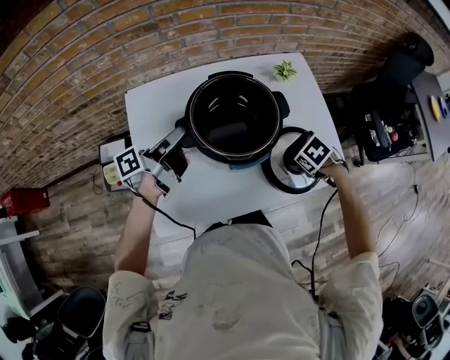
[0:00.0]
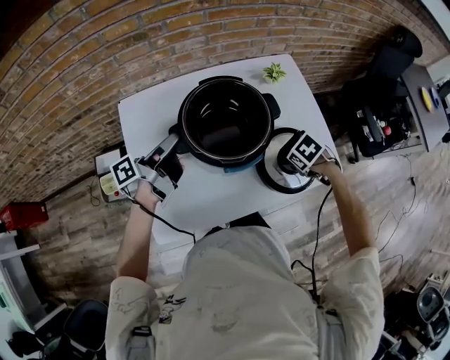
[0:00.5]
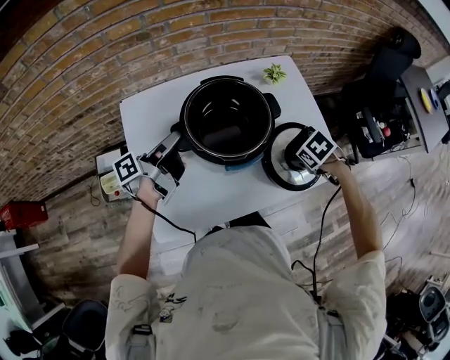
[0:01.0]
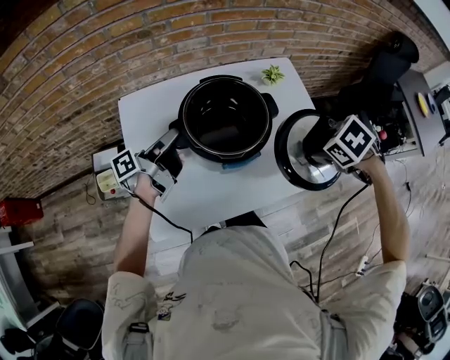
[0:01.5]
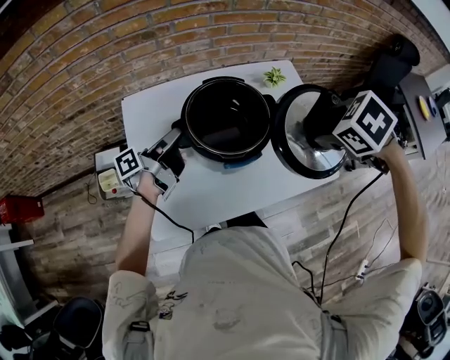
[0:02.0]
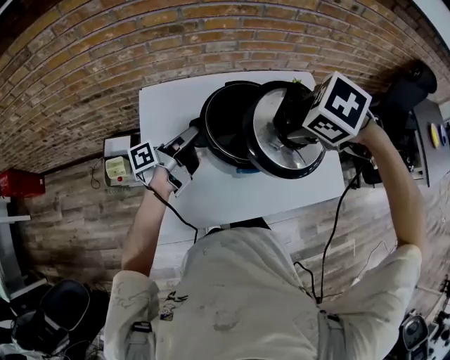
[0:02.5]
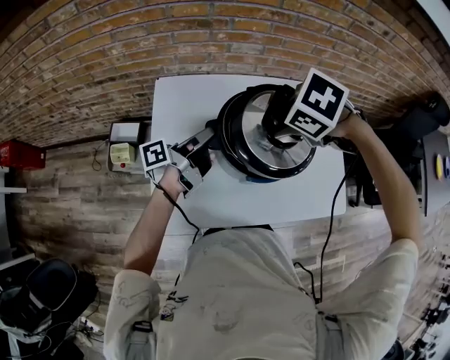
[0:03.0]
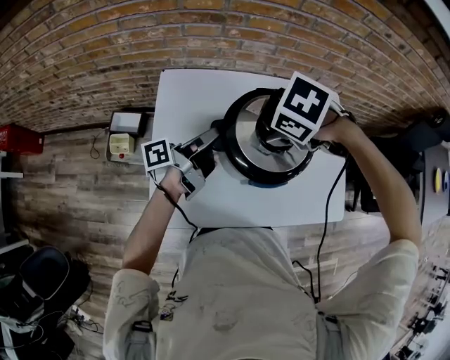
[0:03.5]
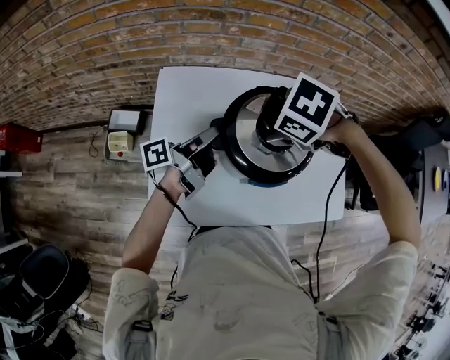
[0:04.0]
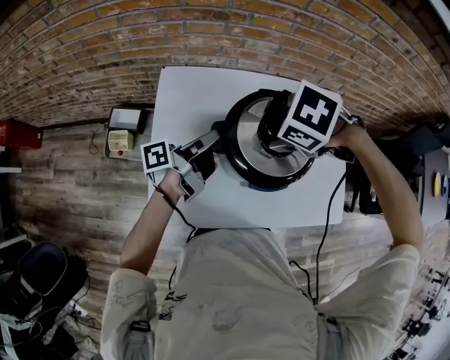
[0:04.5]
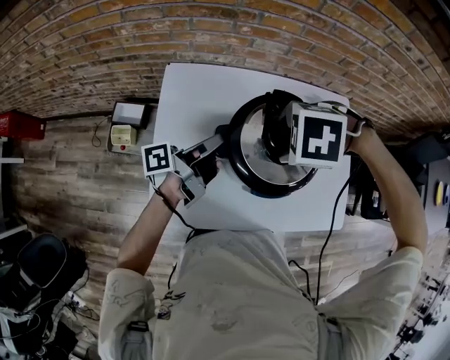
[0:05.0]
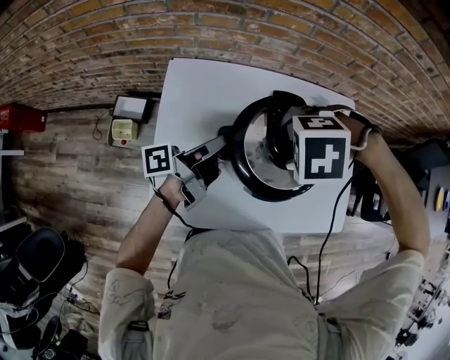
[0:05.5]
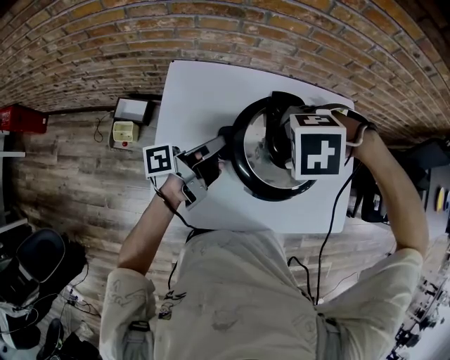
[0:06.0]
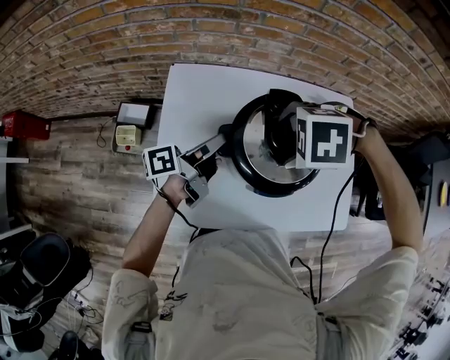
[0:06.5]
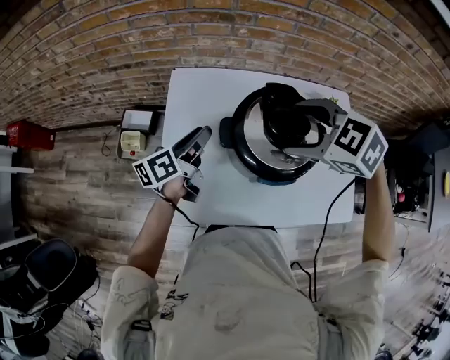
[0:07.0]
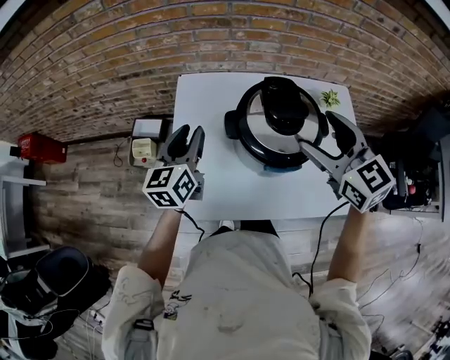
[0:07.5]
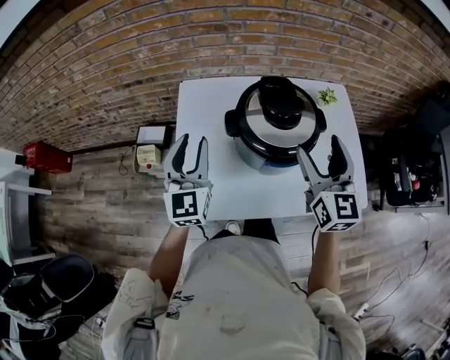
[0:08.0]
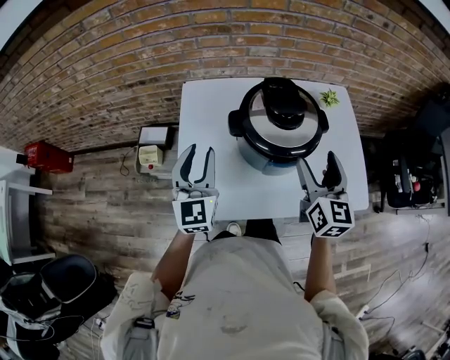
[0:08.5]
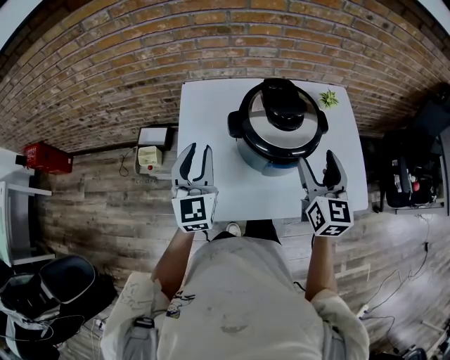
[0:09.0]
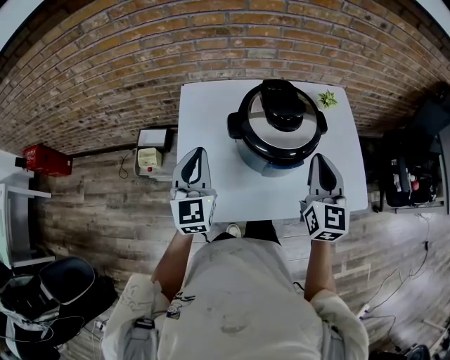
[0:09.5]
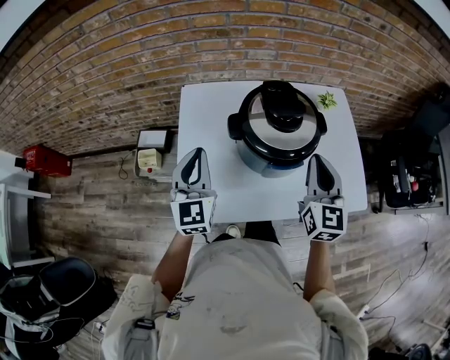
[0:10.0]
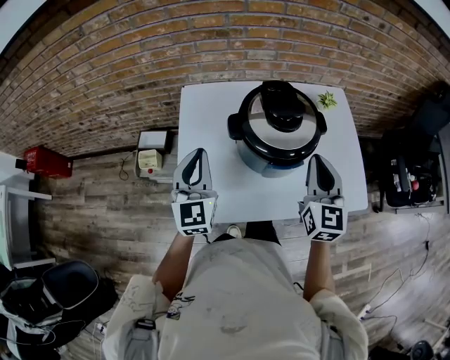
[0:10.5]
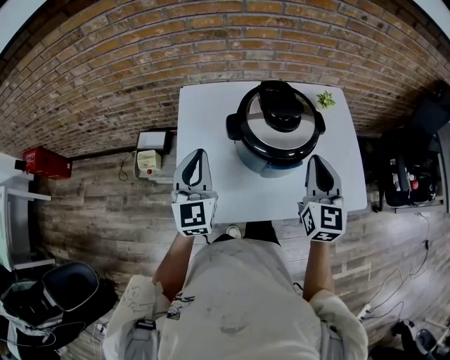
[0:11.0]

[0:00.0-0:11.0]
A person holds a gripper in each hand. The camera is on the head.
0:00.0 to 0:02.0: The right gripper goes about 25 cm upward.
0:02.0 to 0:03.5: The right gripper ends up some 25 cm from where it was, and swivels roughly 30 degrees.
0:03.5 to 0:05.5: The right gripper rotates about 40 degrees.
0:05.5 to 0:07.5: The left gripper moves roughly 10 cm, rotates around the line of its fingers by some 70 degrees, clockwise from behind, and opens; the right gripper shifts some 10 cm upward, and tilts its fingers about 60 degrees upward.
0:07.5 to 0:09.0: The right gripper goes roughly 10 cm downward and backward, and turns by about 40 degrees. Meanwhile the left gripper goes some 5 cm backward, and swivels roughly 30 degrees.
0:09.0 to 0:11.0: The right gripper closes its fingers; the left gripper closes.

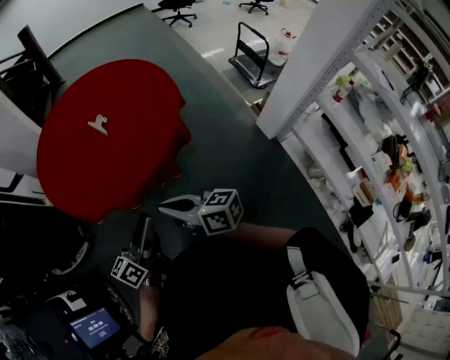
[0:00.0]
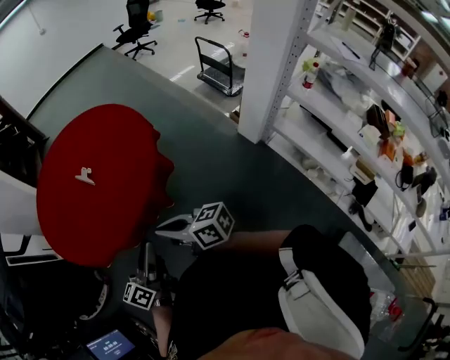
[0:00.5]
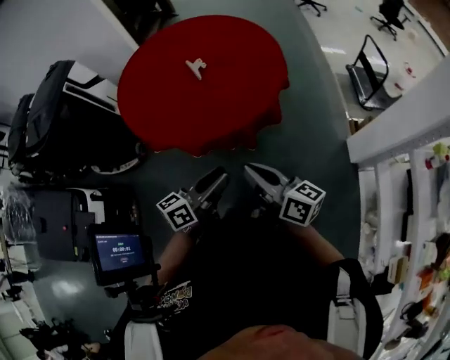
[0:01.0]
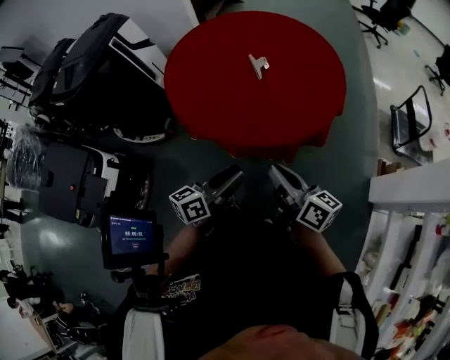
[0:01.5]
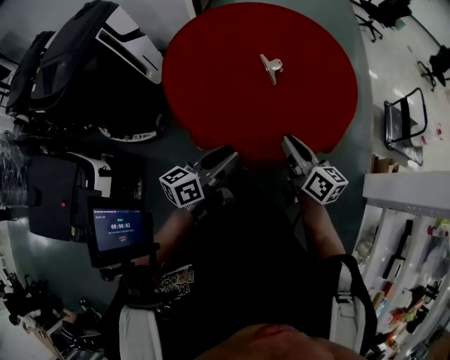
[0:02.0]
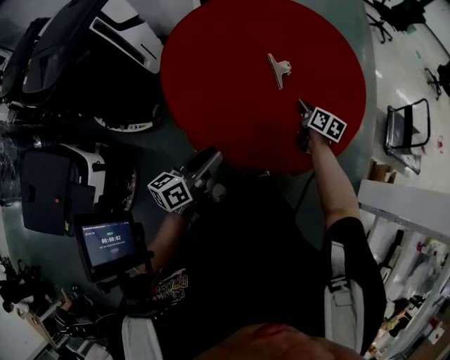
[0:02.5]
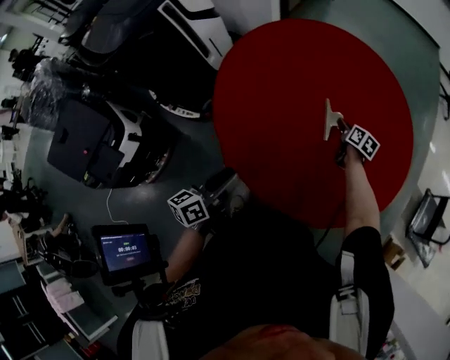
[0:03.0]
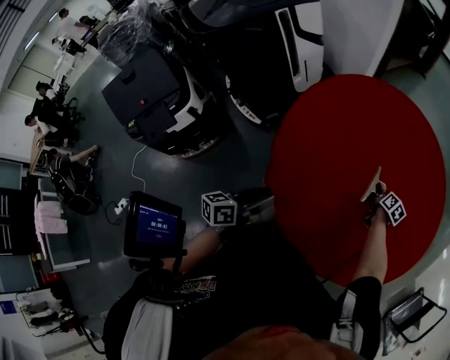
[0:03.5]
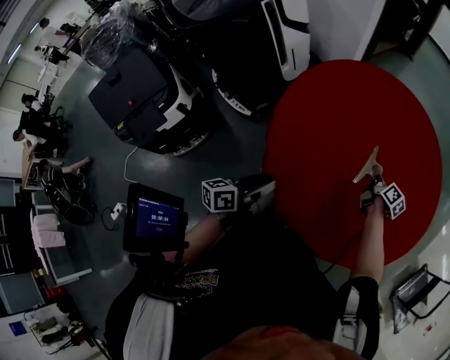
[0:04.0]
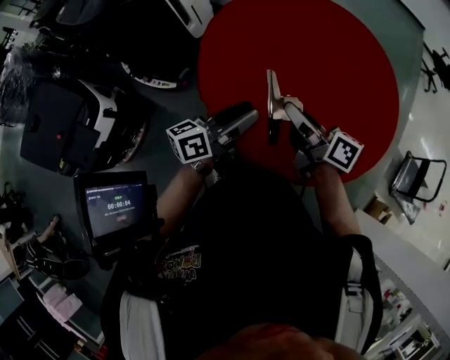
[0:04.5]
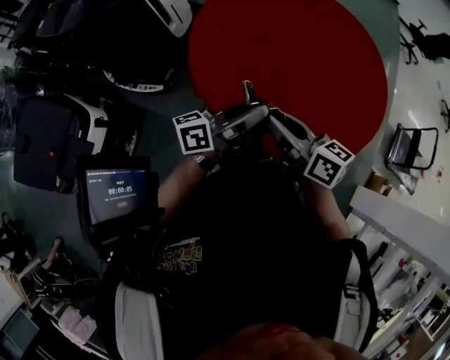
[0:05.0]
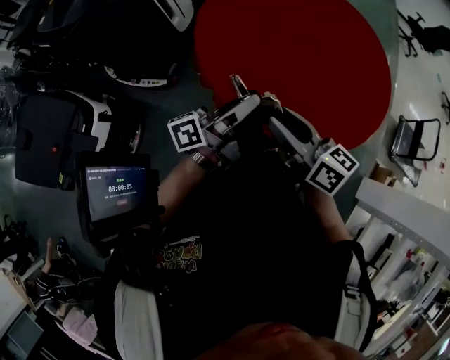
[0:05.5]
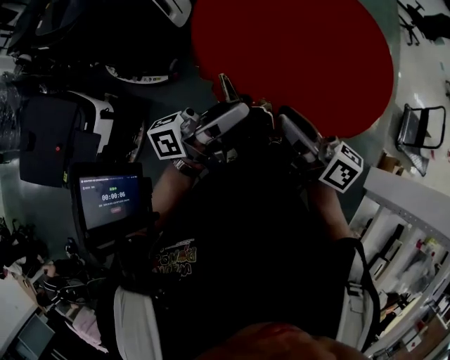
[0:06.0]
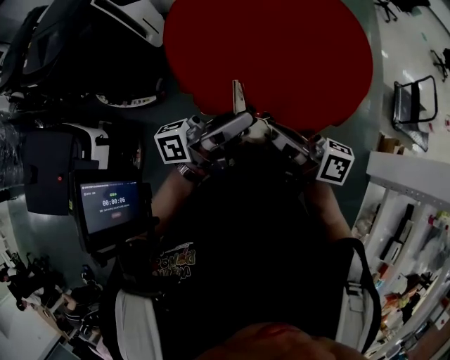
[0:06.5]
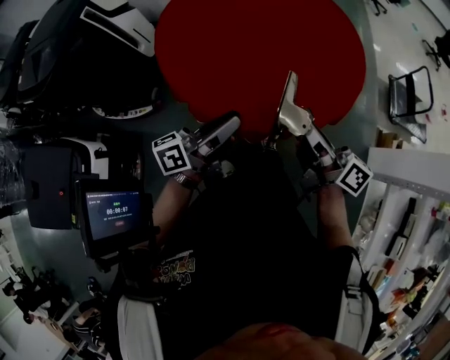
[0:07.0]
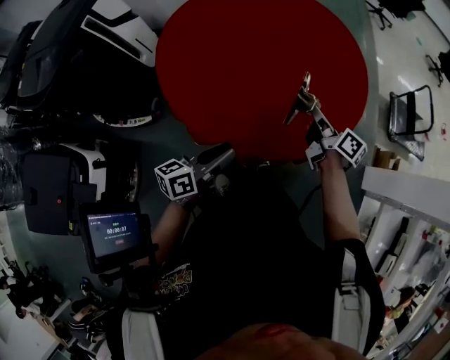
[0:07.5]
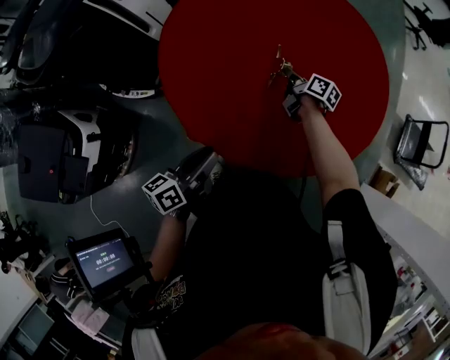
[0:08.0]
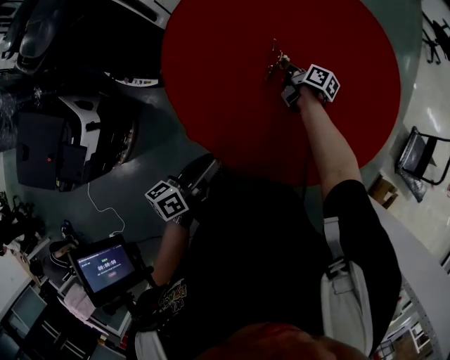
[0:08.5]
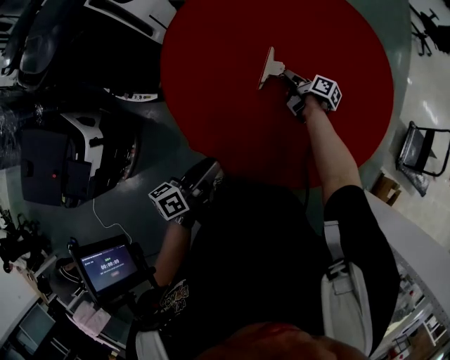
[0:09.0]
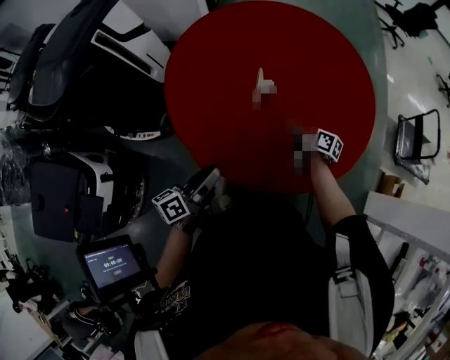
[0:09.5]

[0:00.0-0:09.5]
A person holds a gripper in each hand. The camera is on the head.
0:00.0 to 0:02.0: The right gripper shifts some 20 cm forward. The left gripper heads to the left and forward, covering about 20 cm.
0:02.0 to 0:04.0: The left gripper shifts approximately 10 cm to the left, and changes its angle by roughly 30 degrees; the right gripper is displaced forward and downward by approximately 35 cm, and turns by roughly 30 degrees.
0:04.0 to 0:05.5: The right gripper shifts approximately 50 cm backward, to the left and upward, changes its angle by roughly 30 degrees, and opens its fingers, while the left gripper heads upward, covering roughly 10 cm, and points its fingers roughly 30 degrees further upward.
0:05.5 to 0:07.5: The right gripper goes about 35 cm to the right, forward and downward, swivels roughly 40 degrees, and closes; the left gripper heads downward and to the right, covering roughly 10 cm, and changes its angle by some 30 degrees.
0:07.5 to 0:09.5: The left gripper ends up roughly 10 cm from where it was.

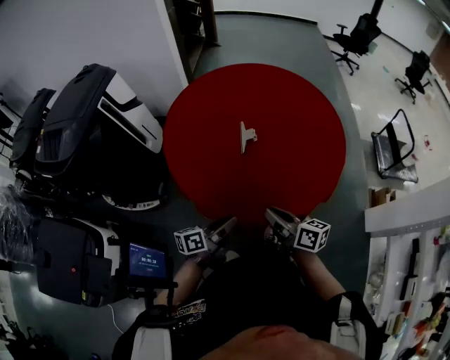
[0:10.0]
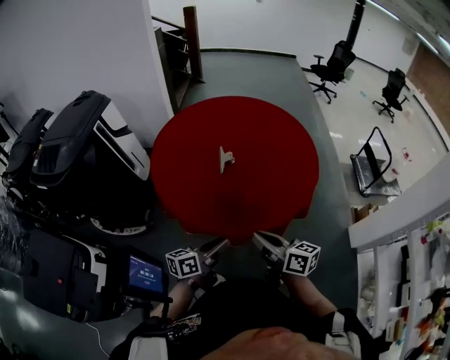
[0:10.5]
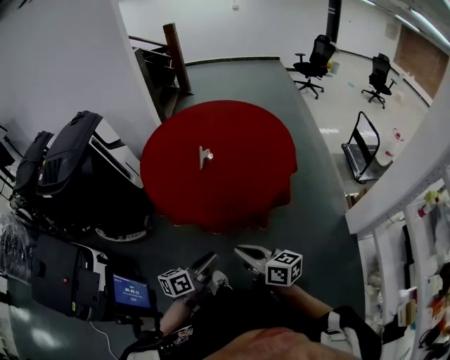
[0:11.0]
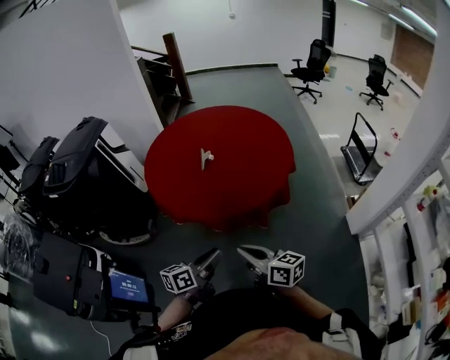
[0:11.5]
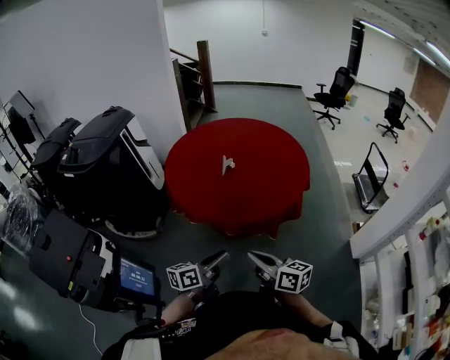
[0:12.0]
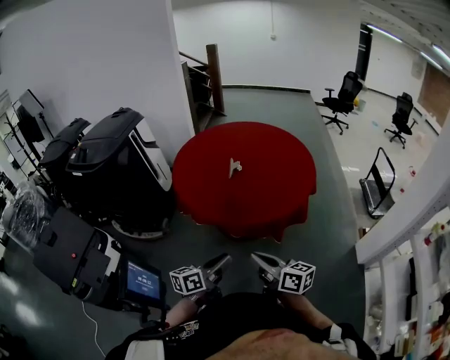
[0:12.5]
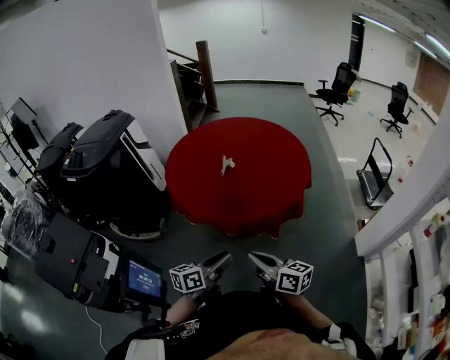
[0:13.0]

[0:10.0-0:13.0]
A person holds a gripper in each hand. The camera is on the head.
0:10.0 to 0:11.5: The right gripper goes some 25 cm backward. Meanwhile the left gripper is displaced backward and to the right by about 25 cm.
0:11.5 to 0:13.0: The grippers move only a little.

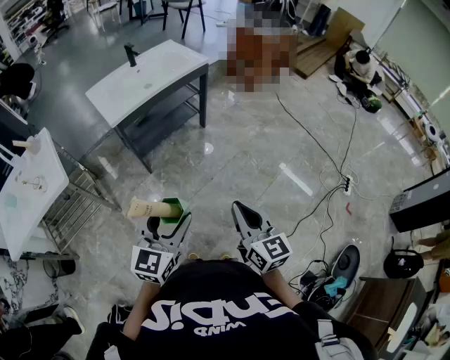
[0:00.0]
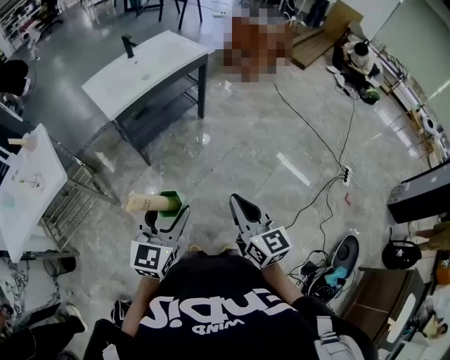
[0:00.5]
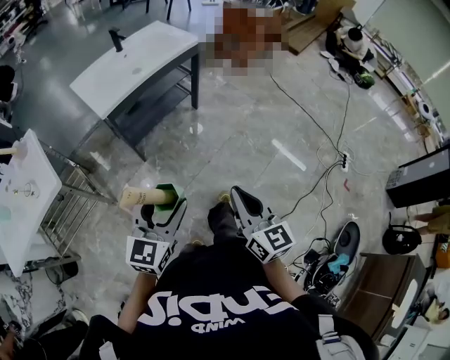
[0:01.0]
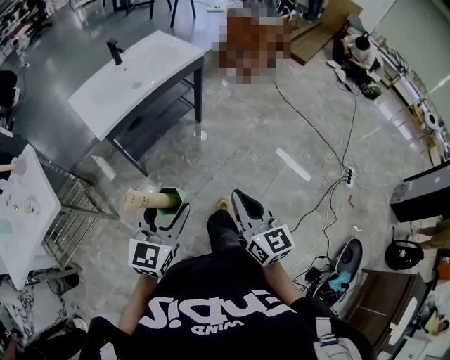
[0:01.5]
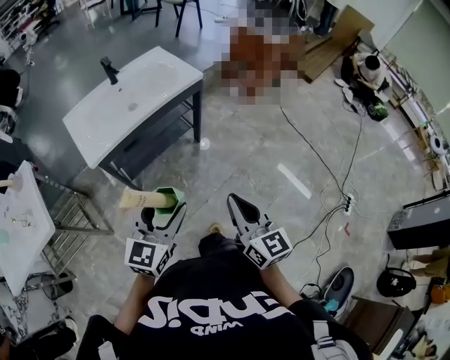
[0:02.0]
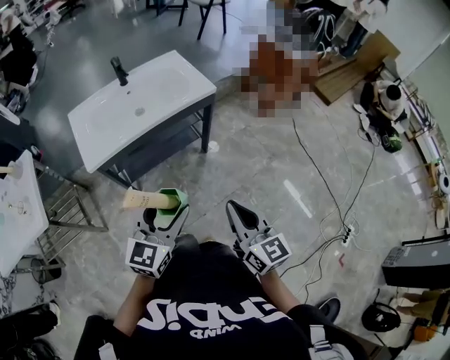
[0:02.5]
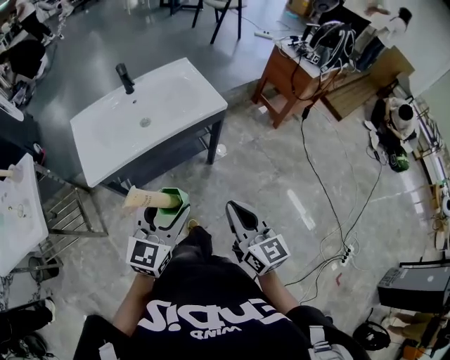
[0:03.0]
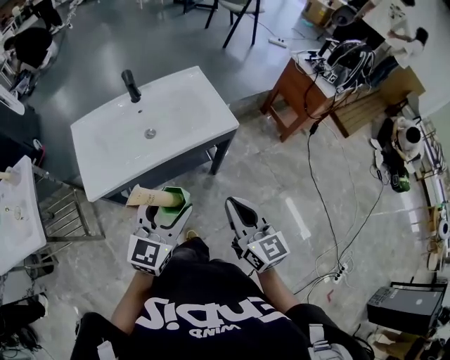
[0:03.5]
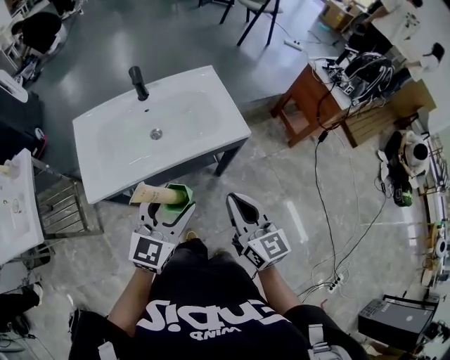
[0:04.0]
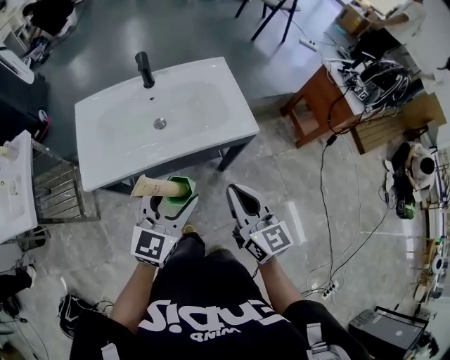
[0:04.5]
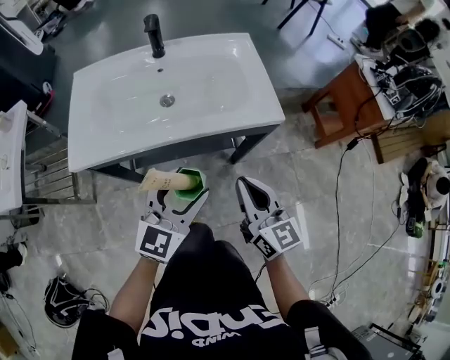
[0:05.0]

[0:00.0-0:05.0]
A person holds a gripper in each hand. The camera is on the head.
0:00.0 to 0:02.5: The two grippers go roughly 35 cm forward.
0:02.5 to 0:05.0: The left gripper moves forward and downward, approximately 30 cm. The right gripper is displaced forward by approximately 35 cm, and changes its angle by about 20 degrees.
